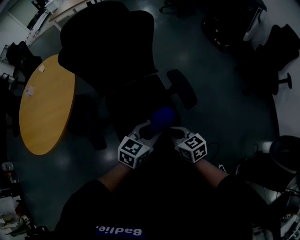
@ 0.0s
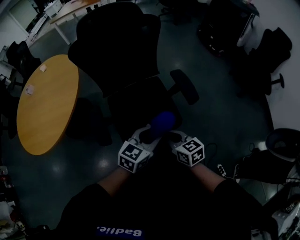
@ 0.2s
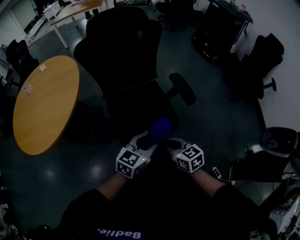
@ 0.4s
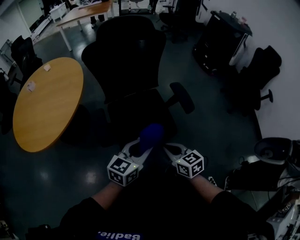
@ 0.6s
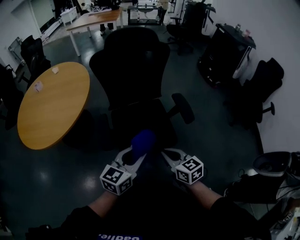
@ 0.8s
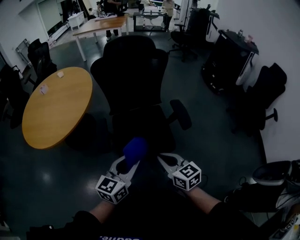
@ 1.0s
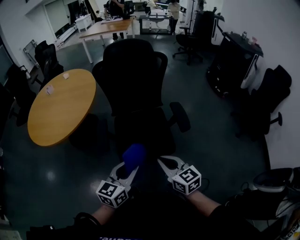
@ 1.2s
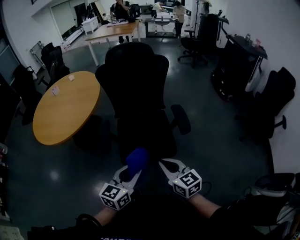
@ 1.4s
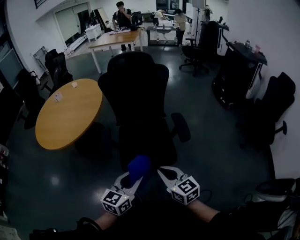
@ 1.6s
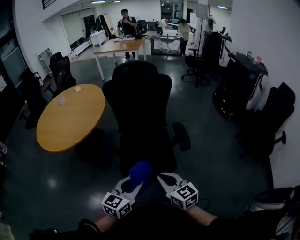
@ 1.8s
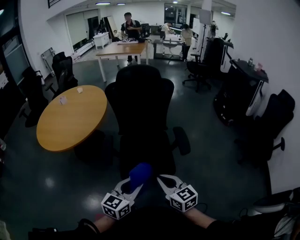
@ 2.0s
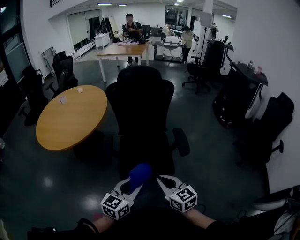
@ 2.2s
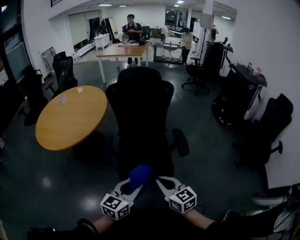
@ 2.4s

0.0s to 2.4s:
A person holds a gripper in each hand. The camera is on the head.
0.0s to 1.2s: The right gripper heads upward and backward, covering some 20 cm. The left gripper is displaced backward, to the left and upward by roughly 20 cm, and swivels about 30 degrees.
1.2s to 2.4s: The grippers move only a little.

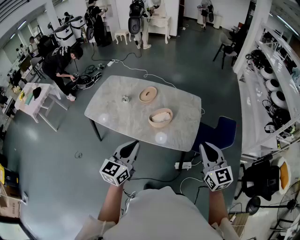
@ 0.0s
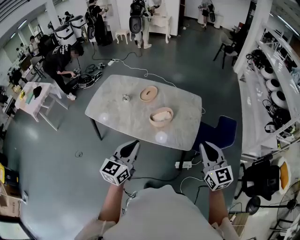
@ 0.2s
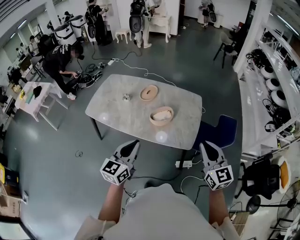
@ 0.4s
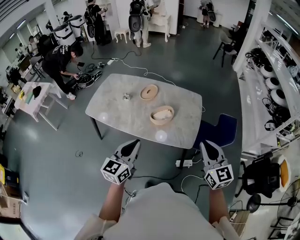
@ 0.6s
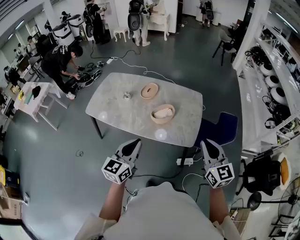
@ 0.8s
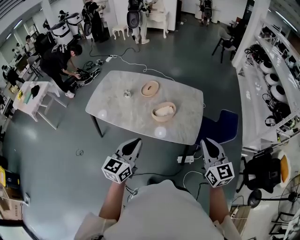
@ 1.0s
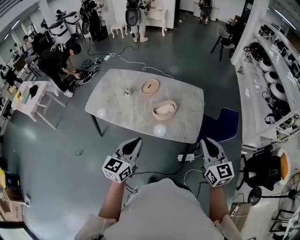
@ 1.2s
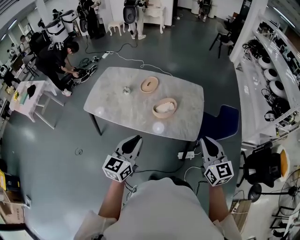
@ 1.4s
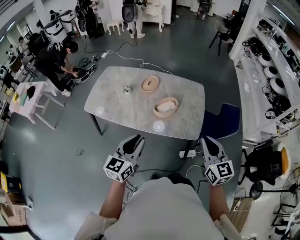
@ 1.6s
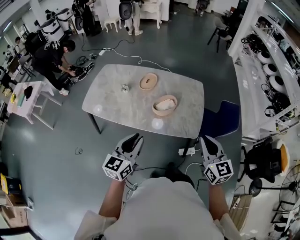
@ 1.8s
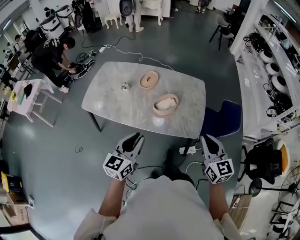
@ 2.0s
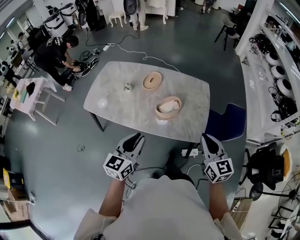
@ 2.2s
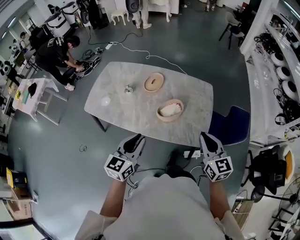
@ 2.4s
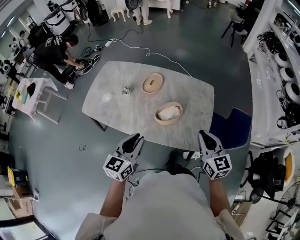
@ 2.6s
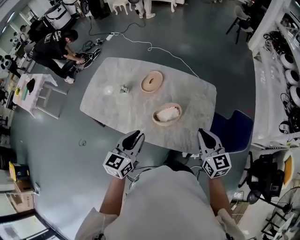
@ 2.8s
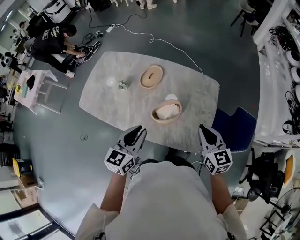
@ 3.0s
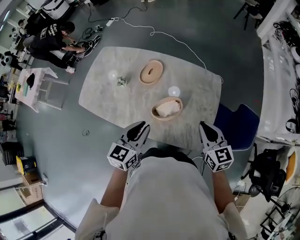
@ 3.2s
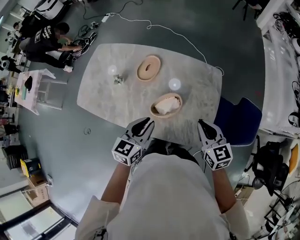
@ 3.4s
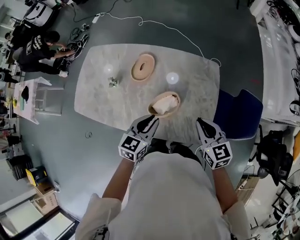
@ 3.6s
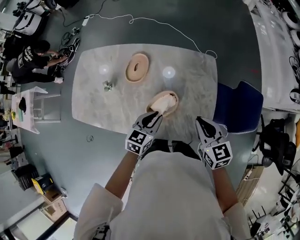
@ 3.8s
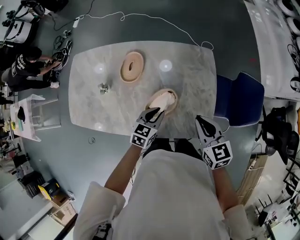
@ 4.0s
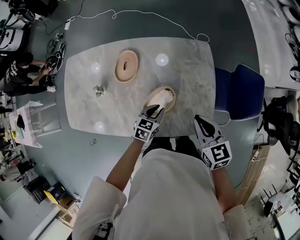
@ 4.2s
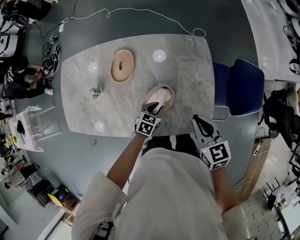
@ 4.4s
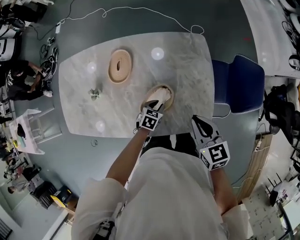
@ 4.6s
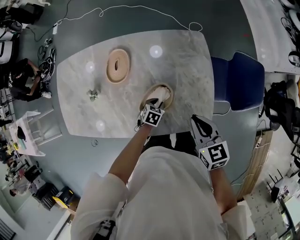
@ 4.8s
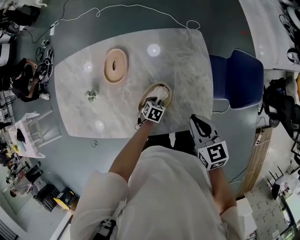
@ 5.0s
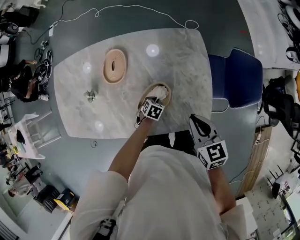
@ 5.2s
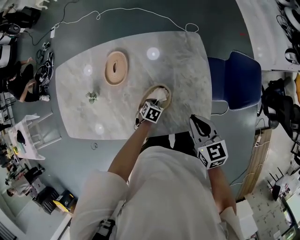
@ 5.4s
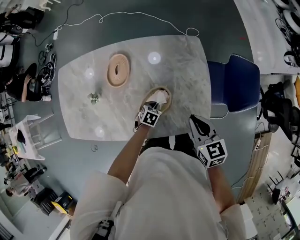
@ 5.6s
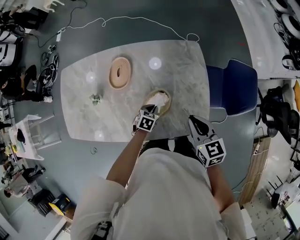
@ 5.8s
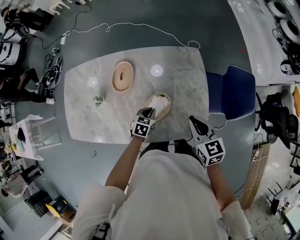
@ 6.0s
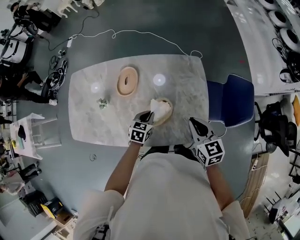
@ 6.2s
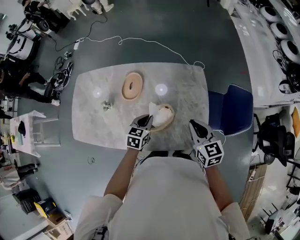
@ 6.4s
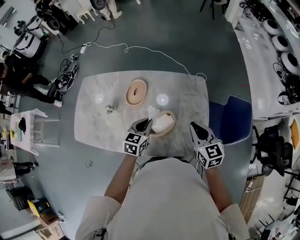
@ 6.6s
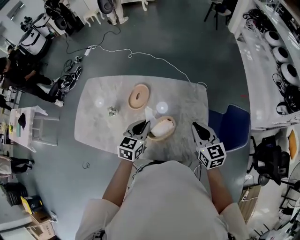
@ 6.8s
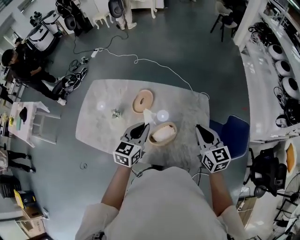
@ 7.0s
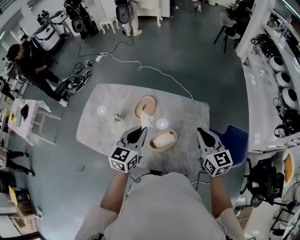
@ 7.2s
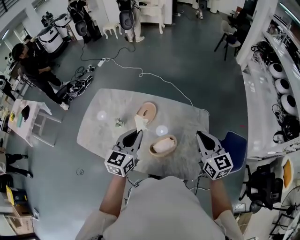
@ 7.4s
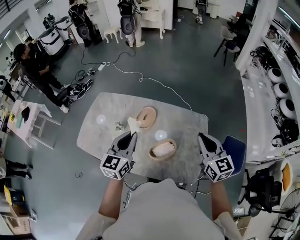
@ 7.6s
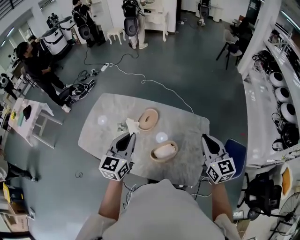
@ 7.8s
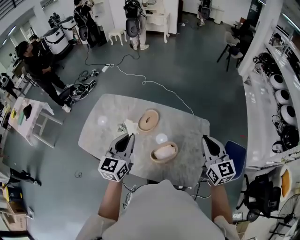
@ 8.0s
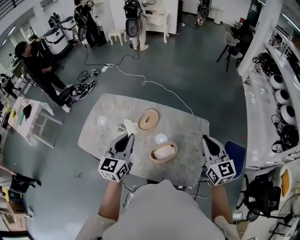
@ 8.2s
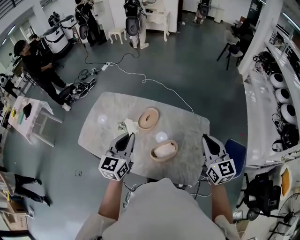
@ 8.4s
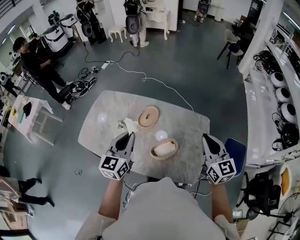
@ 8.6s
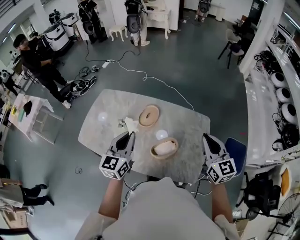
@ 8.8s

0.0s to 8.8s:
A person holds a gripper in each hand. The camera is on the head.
0.0s to 1.4s: Both grippers move to the left, some 5 cm.
1.4s to 3.0s: Both grippers move forward, roughly 25 cm.
3.0s to 4.4s: The right gripper goes roughly 15 cm downward and forward, and swivels some 20 degrees; the left gripper shifts some 35 cm downward and forward, and points its fingers about 40 degrees further downward.
4.4s to 5.8s: The left gripper goes downward and returns, approximately 10 cm each way.
5.8s to 7.4s: The left gripper is displaced upward by roughly 40 cm, and tilts its fingers about 50 degrees upward. The right gripper goes roughly 20 cm upward, and turns by roughly 30 degrees.
7.4s to 8.8s: The left gripper is displaced to the left by some 5 cm.

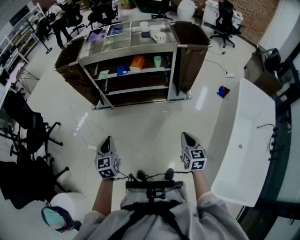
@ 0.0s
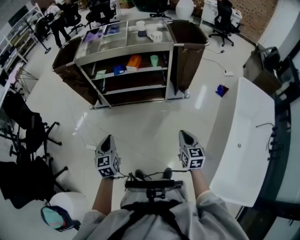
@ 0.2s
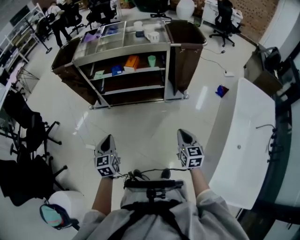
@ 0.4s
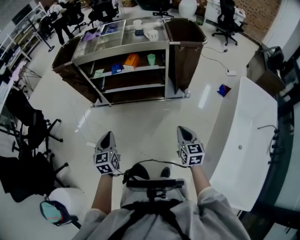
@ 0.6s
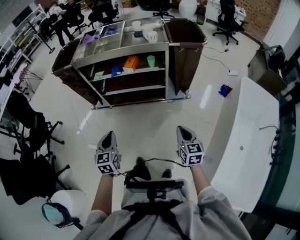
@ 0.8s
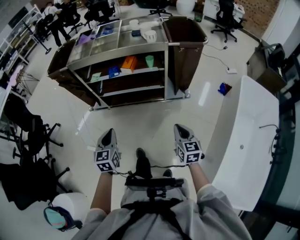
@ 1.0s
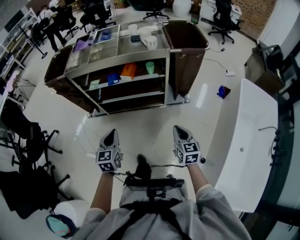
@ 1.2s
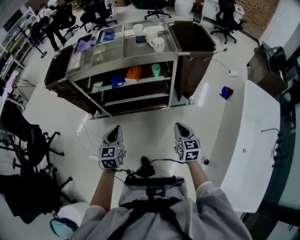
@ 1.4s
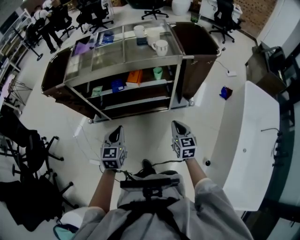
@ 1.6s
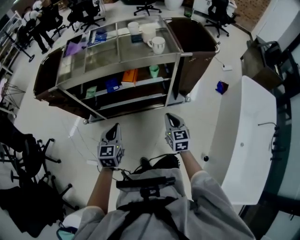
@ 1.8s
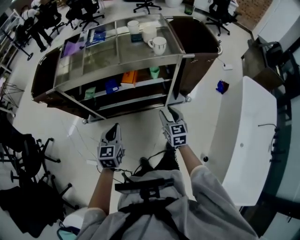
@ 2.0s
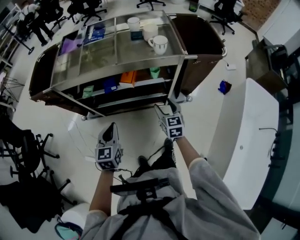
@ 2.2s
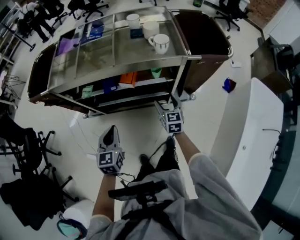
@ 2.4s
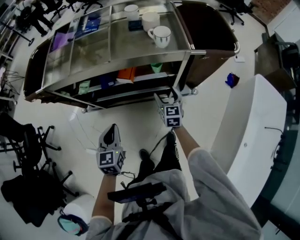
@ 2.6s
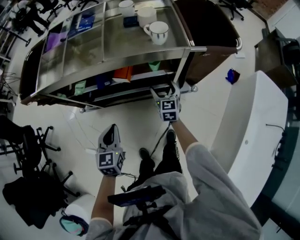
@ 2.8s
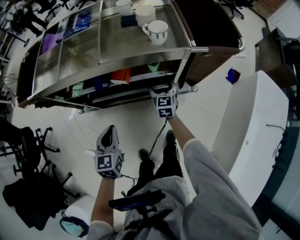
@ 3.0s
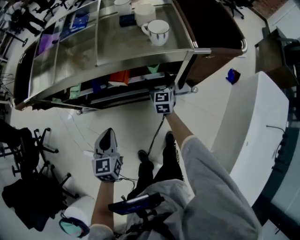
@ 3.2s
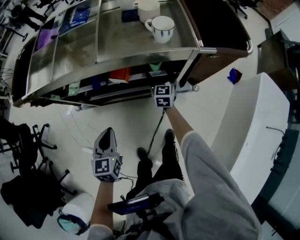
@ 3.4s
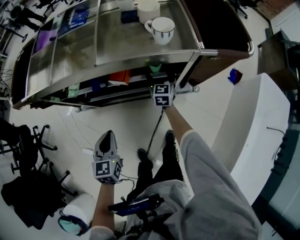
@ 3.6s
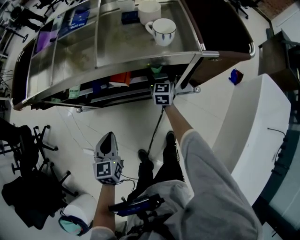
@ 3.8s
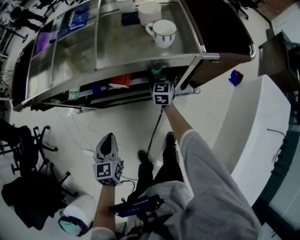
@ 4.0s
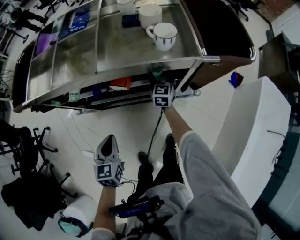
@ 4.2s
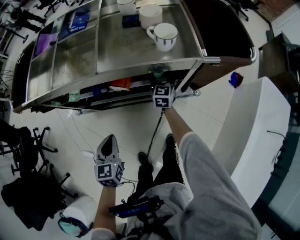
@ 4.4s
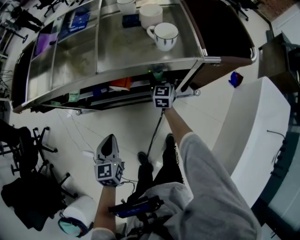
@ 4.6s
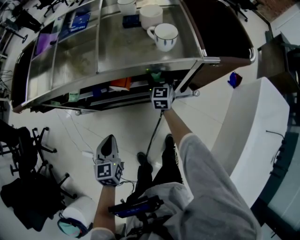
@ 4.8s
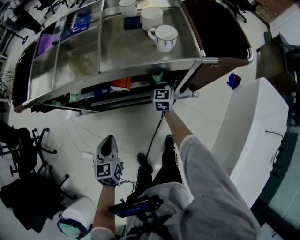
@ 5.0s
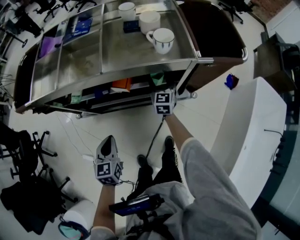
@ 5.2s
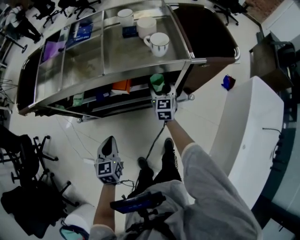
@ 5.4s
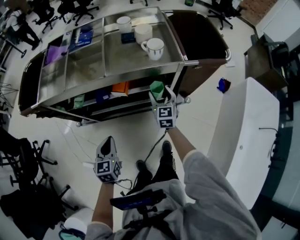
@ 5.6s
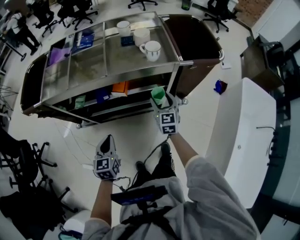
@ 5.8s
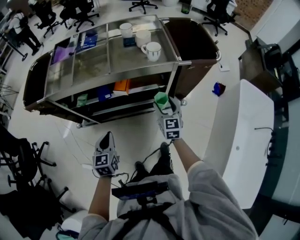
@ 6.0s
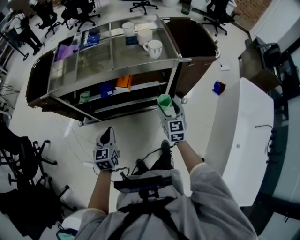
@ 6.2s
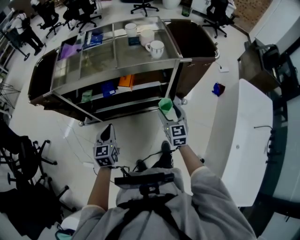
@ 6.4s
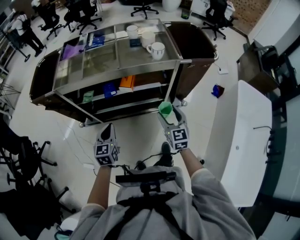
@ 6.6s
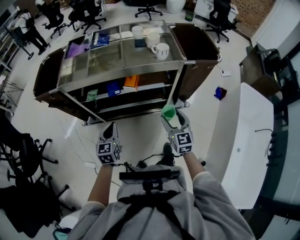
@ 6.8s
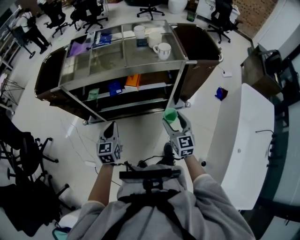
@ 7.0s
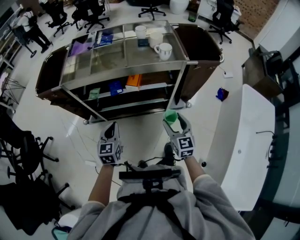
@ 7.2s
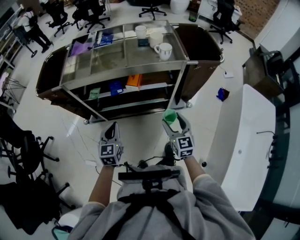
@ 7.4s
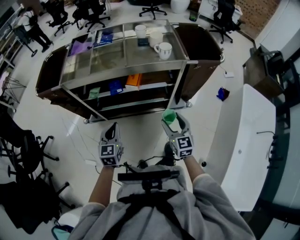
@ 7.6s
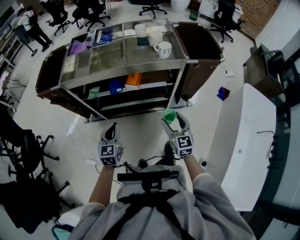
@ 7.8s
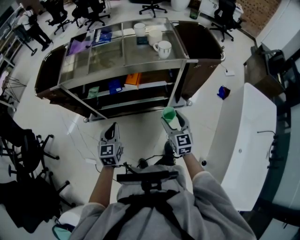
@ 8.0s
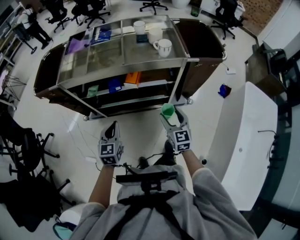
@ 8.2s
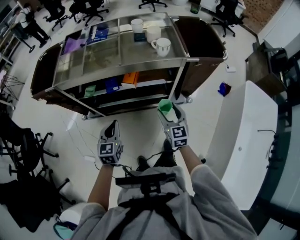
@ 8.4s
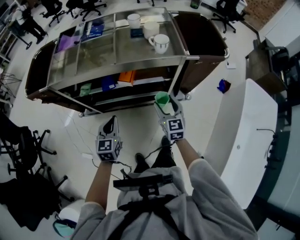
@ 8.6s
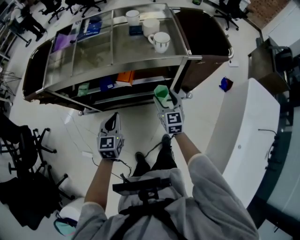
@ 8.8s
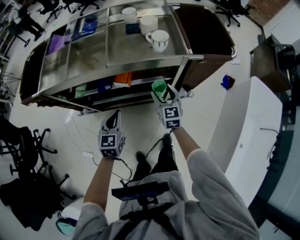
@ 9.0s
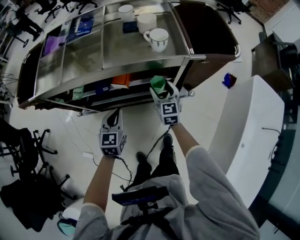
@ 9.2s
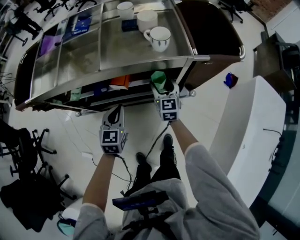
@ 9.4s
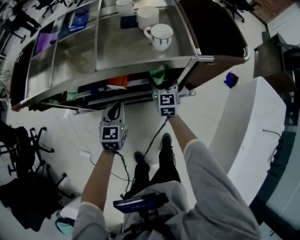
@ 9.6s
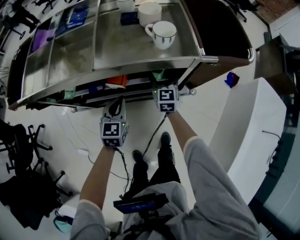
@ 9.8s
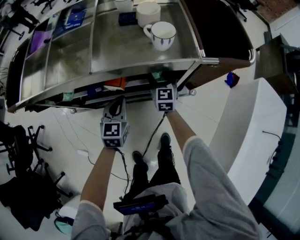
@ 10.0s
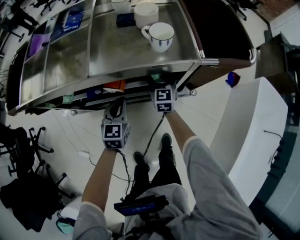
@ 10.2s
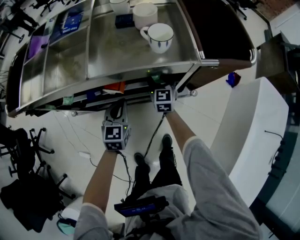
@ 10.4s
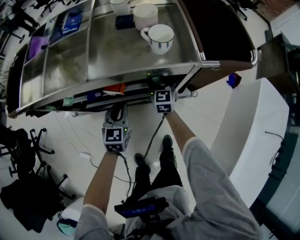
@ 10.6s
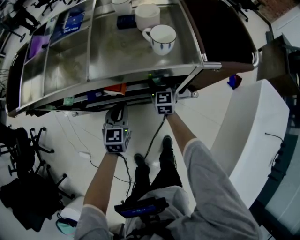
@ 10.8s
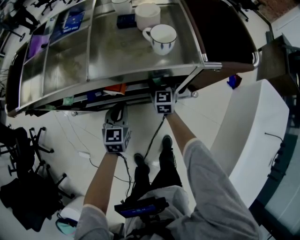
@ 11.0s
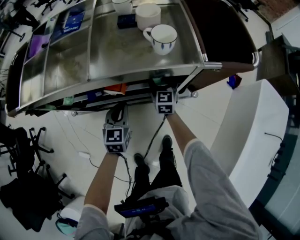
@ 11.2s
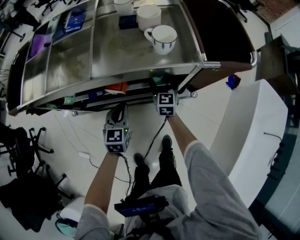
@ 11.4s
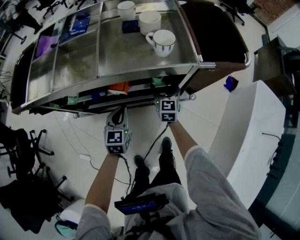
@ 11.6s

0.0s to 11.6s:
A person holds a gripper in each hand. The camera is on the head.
0.0s to 1.4s: The left gripper moves forward and to the right, about 20 cm. The right gripper heads forward, covering about 20 cm.
1.4s to 2.8s: The left gripper shifts about 15 cm forward and downward, while the right gripper heads forward, covering approximately 35 cm, and opens.
2.8s to 4.4s: The right gripper goes some 15 cm forward; the left gripper changes place by some 5 cm.
4.4s to 5.8s: The left gripper shifts by approximately 5 cm. Meanwhile the right gripper shifts about 20 cm backward and upward.
5.8s to 7.2s: The left gripper moves about 5 cm. Meanwhile the right gripper shifts roughly 20 cm backward.
7.2s to 8.8s: The right gripper heads forward, covering some 15 cm, while the left gripper is displaced forward and to the right by approximately 10 cm.
8.8s to 10.2s: The right gripper goes about 20 cm forward and downward; the left gripper travels forward, downward and to the right by approximately 20 cm.
10.2s to 11.6s: The grippers move only a little.

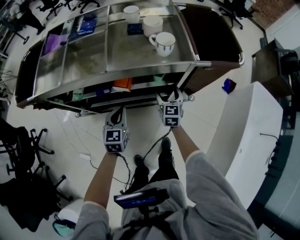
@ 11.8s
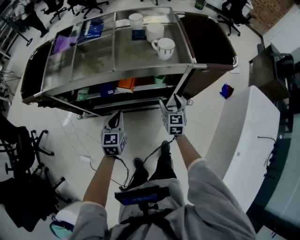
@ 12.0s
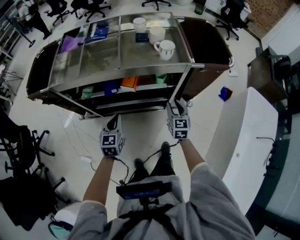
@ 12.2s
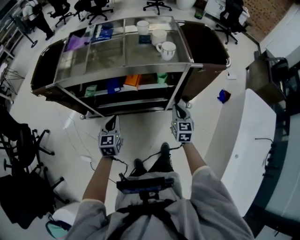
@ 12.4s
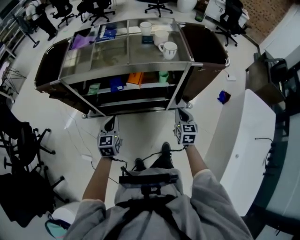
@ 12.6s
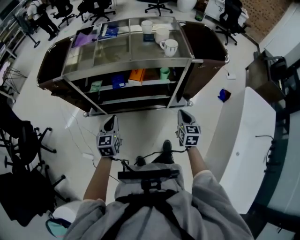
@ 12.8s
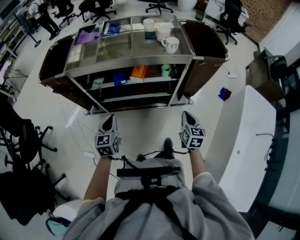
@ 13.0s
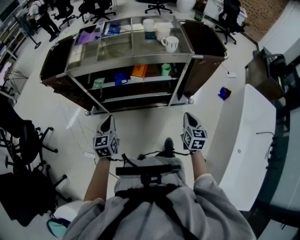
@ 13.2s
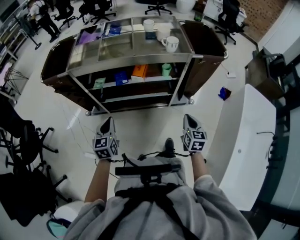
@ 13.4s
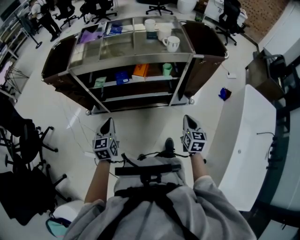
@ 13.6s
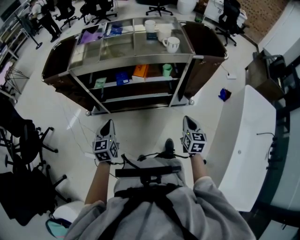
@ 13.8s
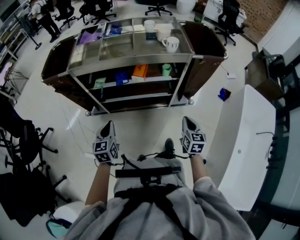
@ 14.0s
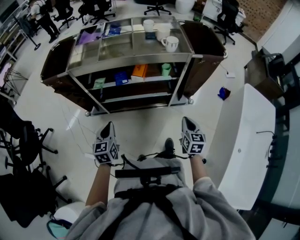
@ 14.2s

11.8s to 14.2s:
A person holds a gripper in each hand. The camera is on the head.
11.8s to 13.0s: The left gripper shifts about 25 cm backward and to the left; the right gripper goes some 25 cm backward, and closes its fingers.
13.0s to 14.2s: The right gripper travels backward by some 5 cm, while the left gripper shifts by some 5 cm.
